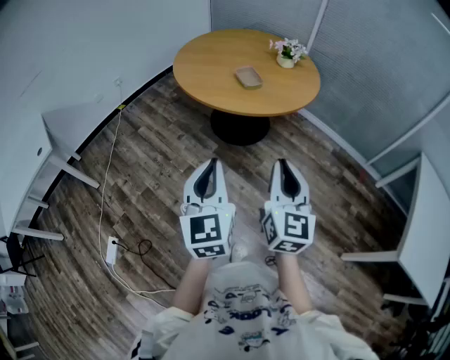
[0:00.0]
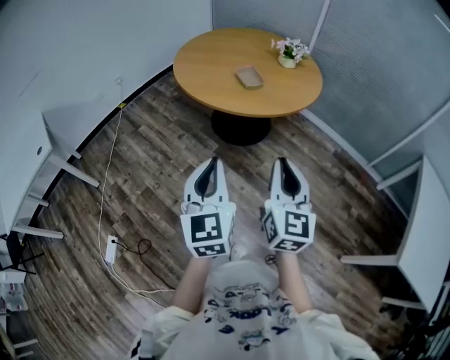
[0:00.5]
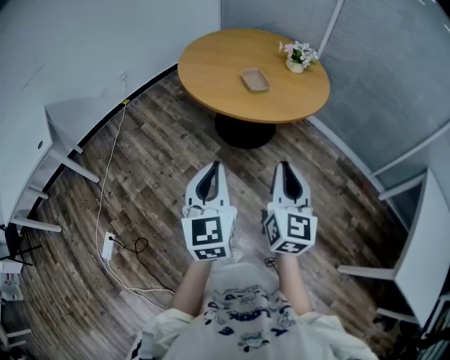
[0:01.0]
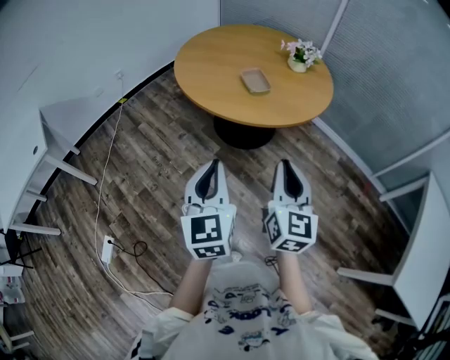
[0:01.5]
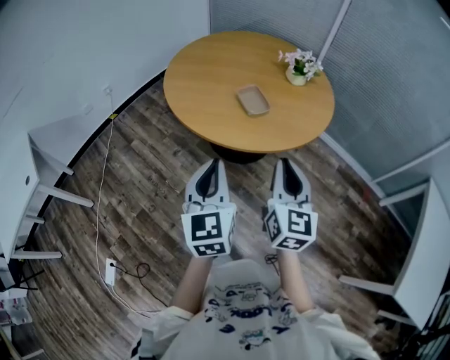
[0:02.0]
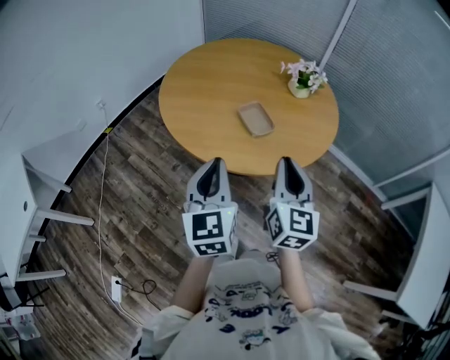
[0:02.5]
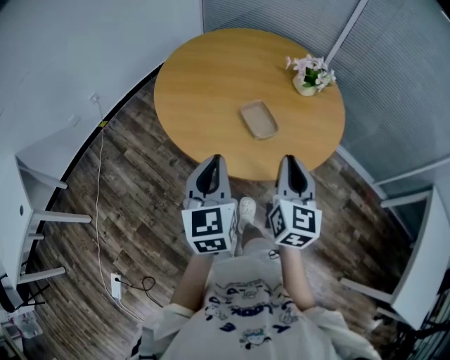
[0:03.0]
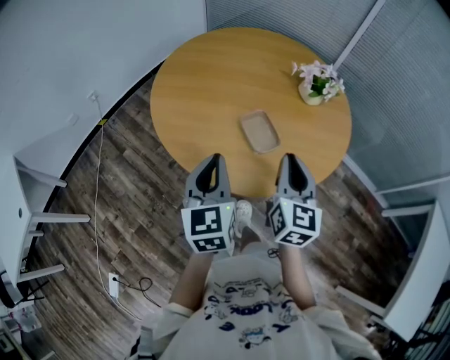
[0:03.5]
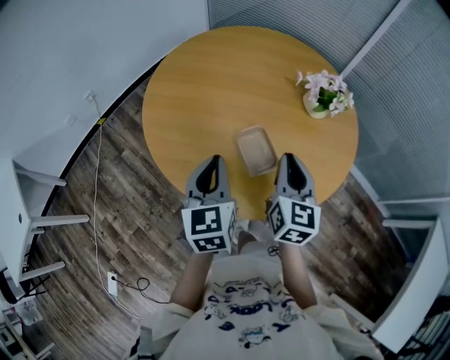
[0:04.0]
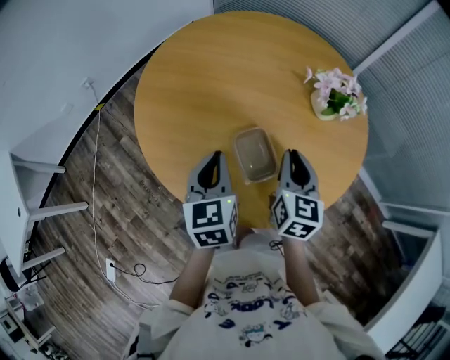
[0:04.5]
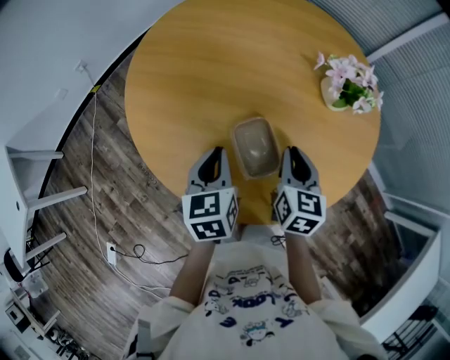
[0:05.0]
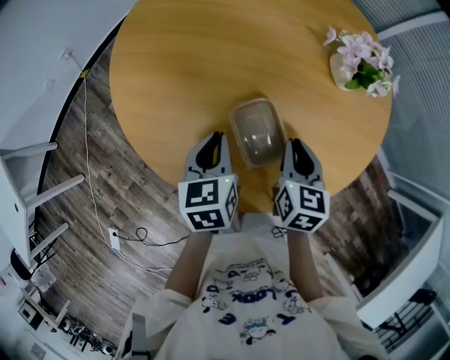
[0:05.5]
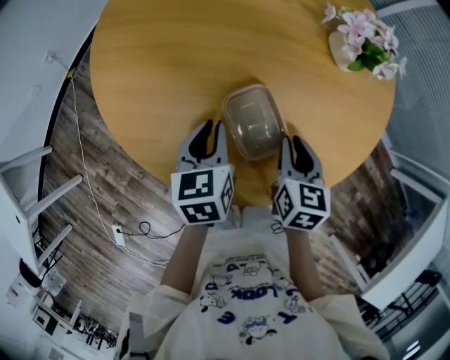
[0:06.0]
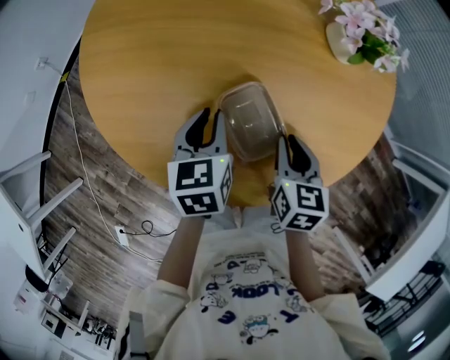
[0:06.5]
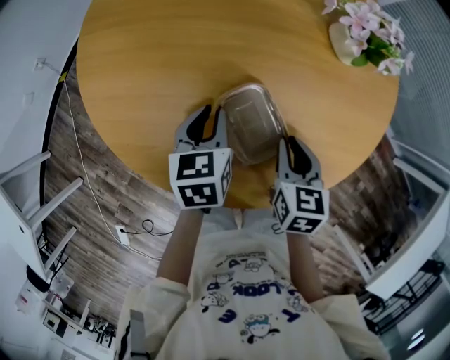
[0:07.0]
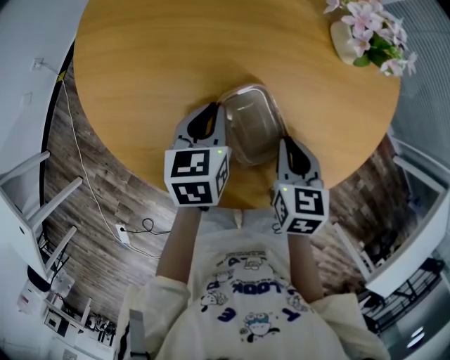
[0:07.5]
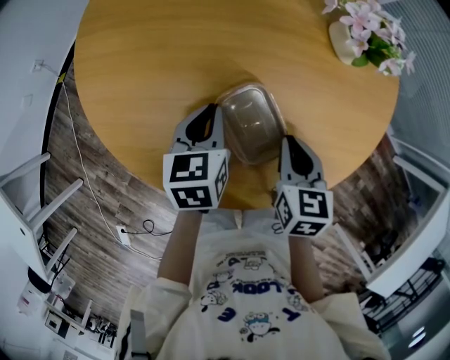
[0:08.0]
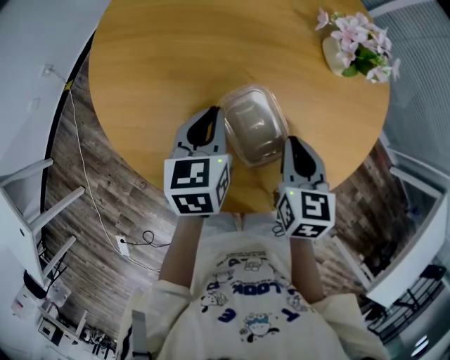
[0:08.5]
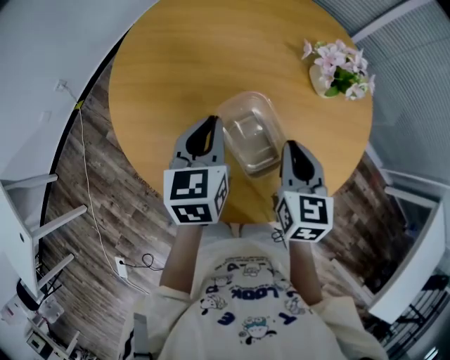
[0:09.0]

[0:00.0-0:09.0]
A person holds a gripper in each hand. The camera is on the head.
0:00.0 to 0:02.0: The two grippers go some 25 cm forward.
0:02.0 to 0:04.5: Both grippers travel together forward, about 40 cm.
0:04.5 to 0:07.0: The right gripper goes some 15 cm downward, and turns by approximately 30 degrees. The left gripper is displaced downward and forward by approximately 15 cm, and changes its angle by roughly 20 degrees.
0:07.0 to 0:09.0: The grippers both shift upward by approximately 15 cm.

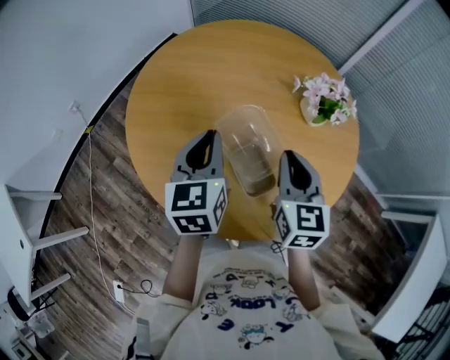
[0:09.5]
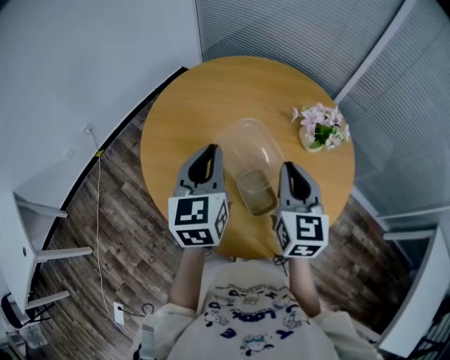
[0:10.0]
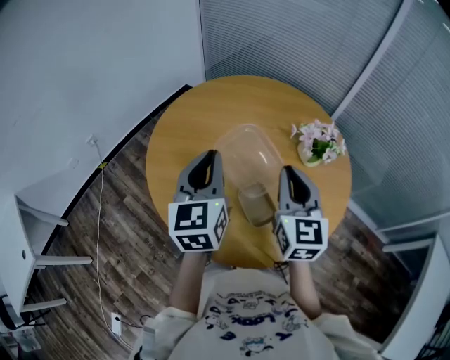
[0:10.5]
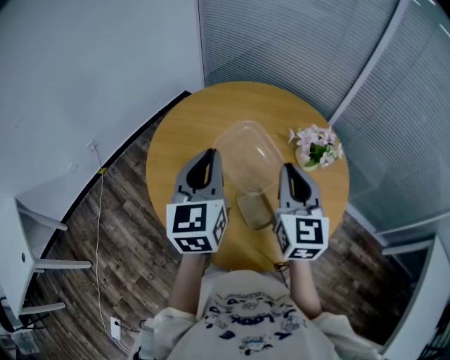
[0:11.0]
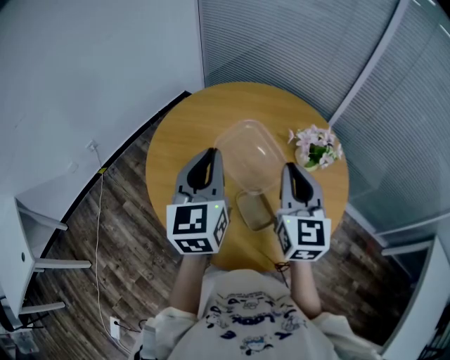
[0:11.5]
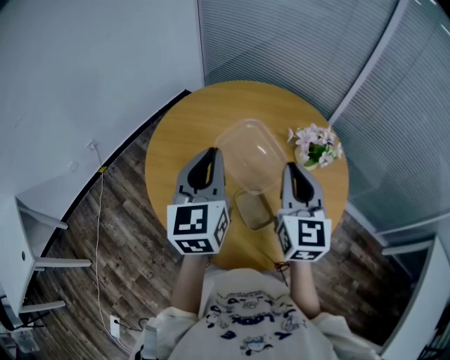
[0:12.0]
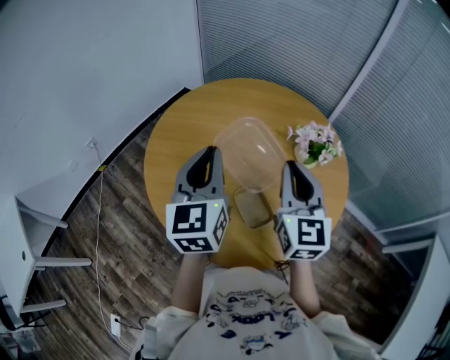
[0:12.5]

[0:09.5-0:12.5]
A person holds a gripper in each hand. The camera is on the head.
0:09.5 to 0:11.0: Both grippers move upward, some 10 cm.
0:11.0 to 0:12.5: The grippers make only small movements.

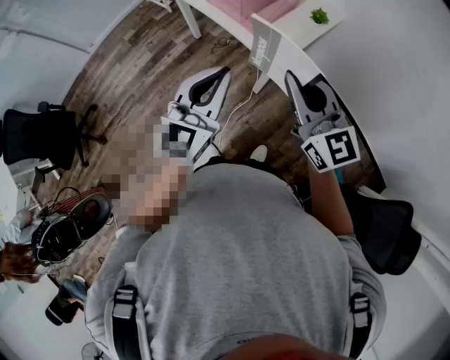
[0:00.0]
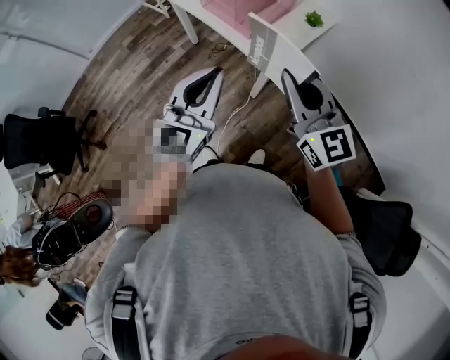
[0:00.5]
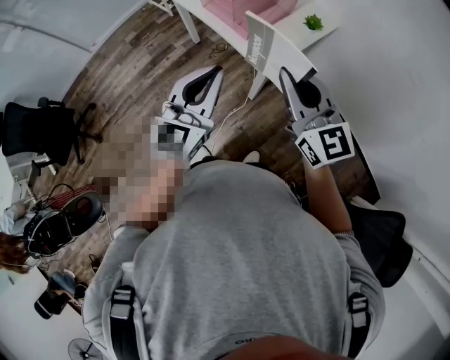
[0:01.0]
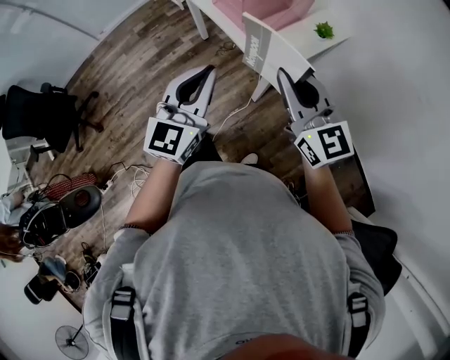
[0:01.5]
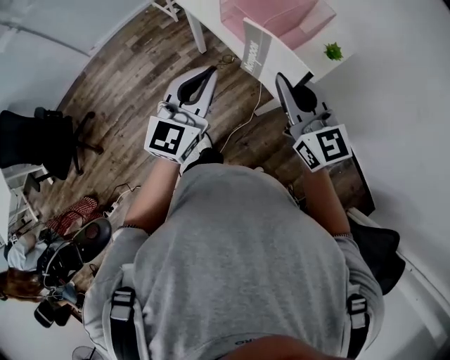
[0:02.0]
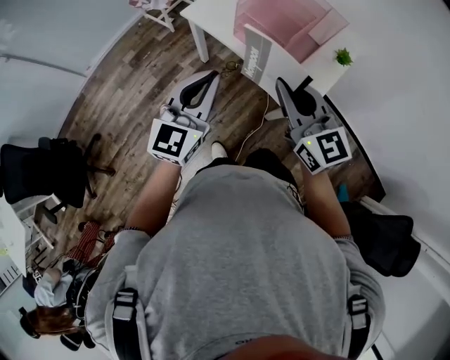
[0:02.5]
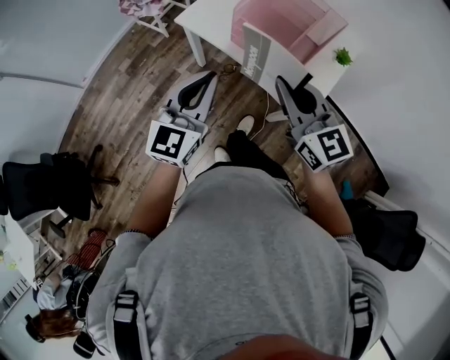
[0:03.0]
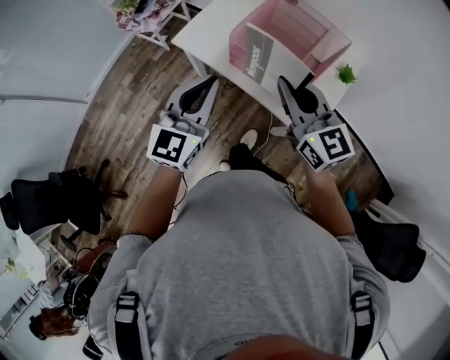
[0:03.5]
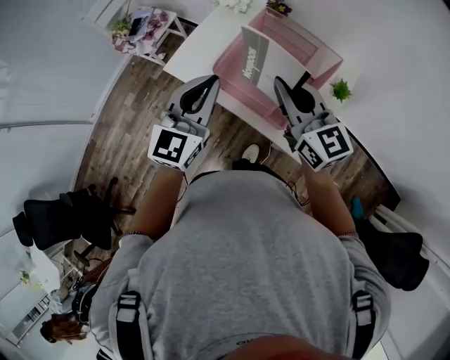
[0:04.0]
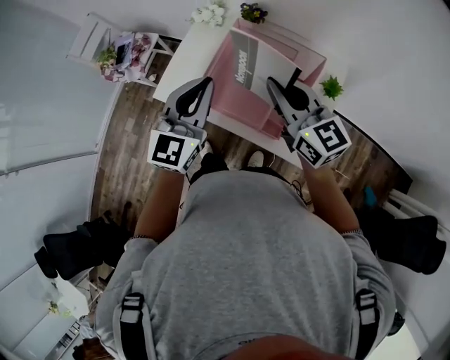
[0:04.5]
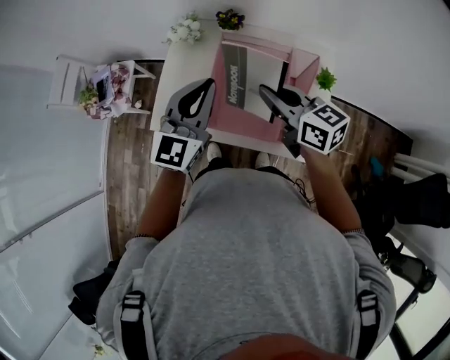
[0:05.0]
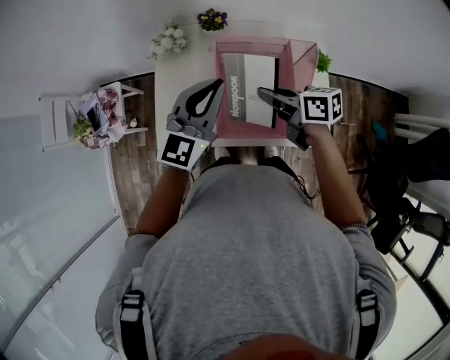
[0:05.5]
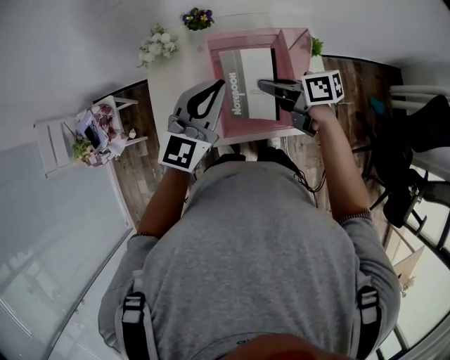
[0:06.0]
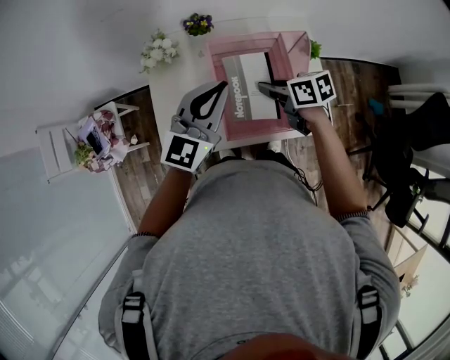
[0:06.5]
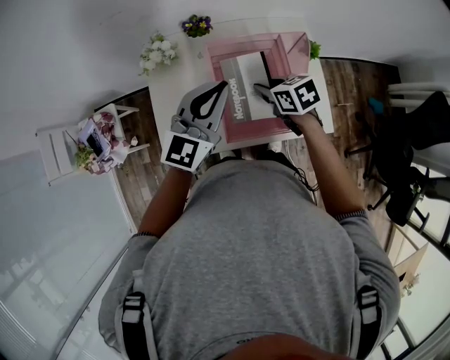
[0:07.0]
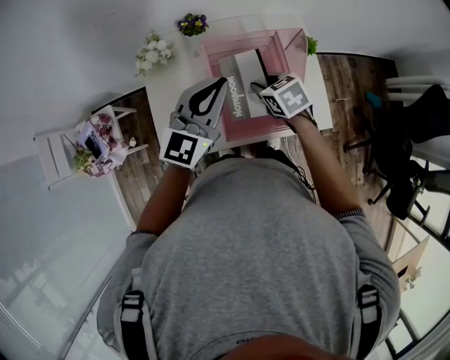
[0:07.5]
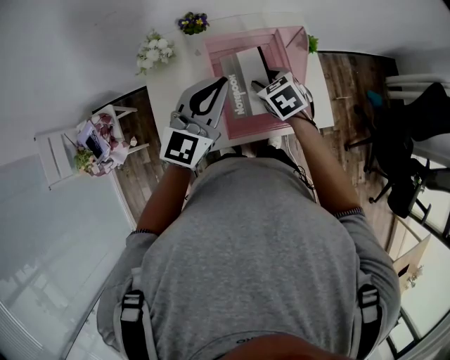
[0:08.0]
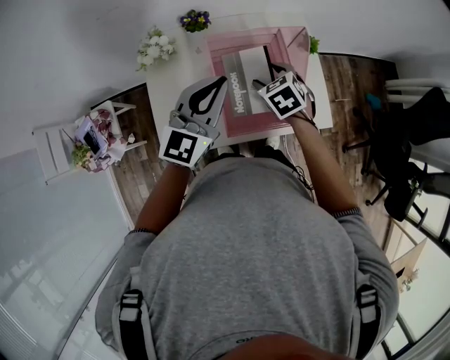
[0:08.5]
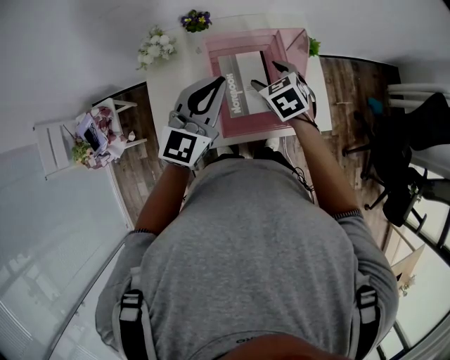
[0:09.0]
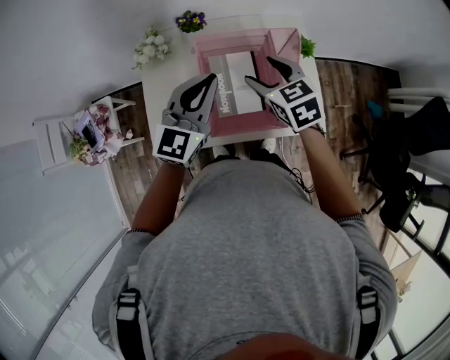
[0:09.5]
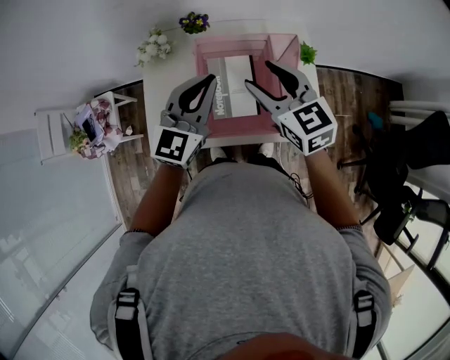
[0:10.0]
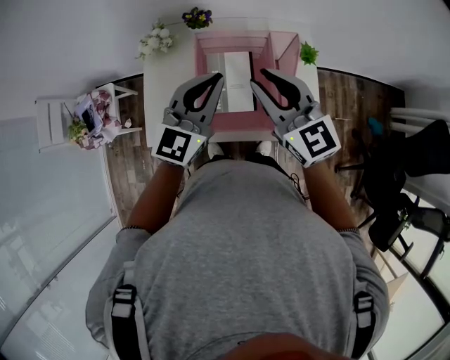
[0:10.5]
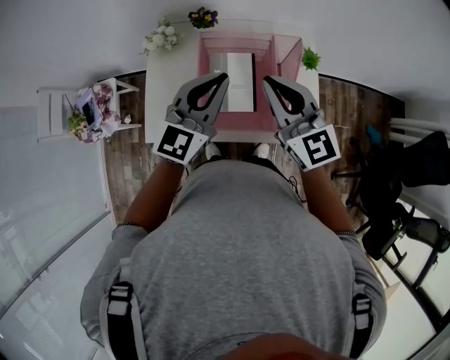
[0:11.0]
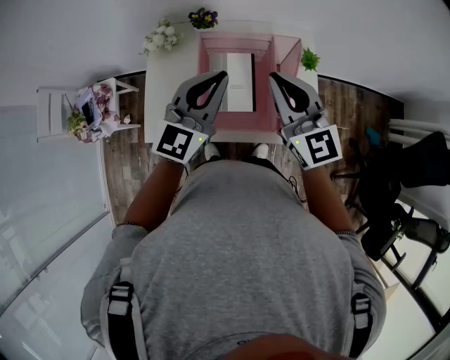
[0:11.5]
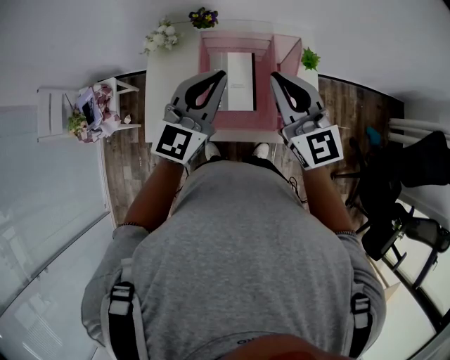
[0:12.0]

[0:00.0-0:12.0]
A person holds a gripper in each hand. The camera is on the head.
0:00.0 to 0:02.0: Both grippers travel together forward and to the left, about 15 cm.
0:02.0 to 0:04.0: Both grippers travel together forward, roughly 30 cm.
0:04.0 to 0:06.0: The left gripper changes place by some 20 cm, and changes its angle by approximately 40 degrees. The right gripper travels downward by some 15 cm, and rolls clockwise, seen from behind, by approximately 60 degrees.
0:06.0 to 0:08.0: The right gripper travels downward by approximately 5 cm, tips its fingers downward by about 30 degrees, and opens up.
0:08.0 to 0:10.0: The right gripper goes about 15 cm upward, and tilts its fingers roughly 40 degrees upward.
0:10.0 to 0:12.0: The right gripper changes place by some 5 cm, and closes. The left gripper changes place by about 5 cm.

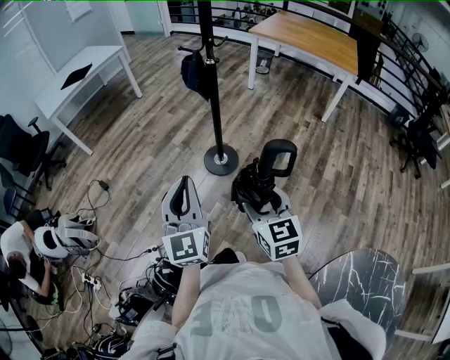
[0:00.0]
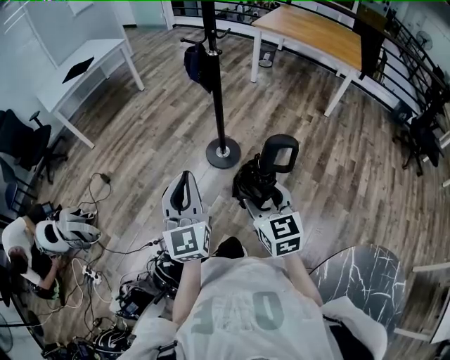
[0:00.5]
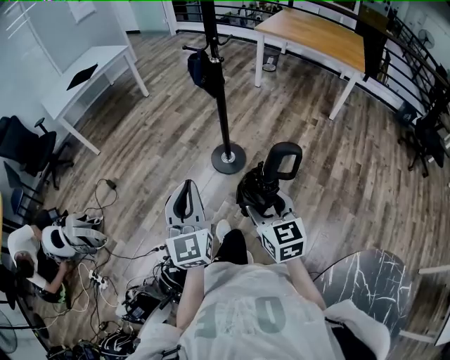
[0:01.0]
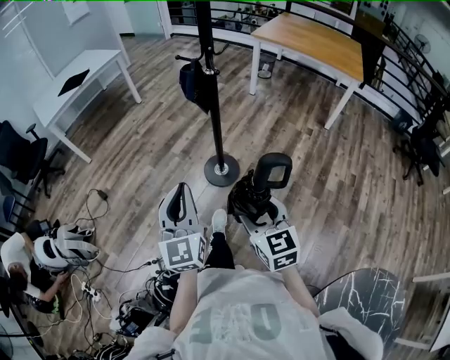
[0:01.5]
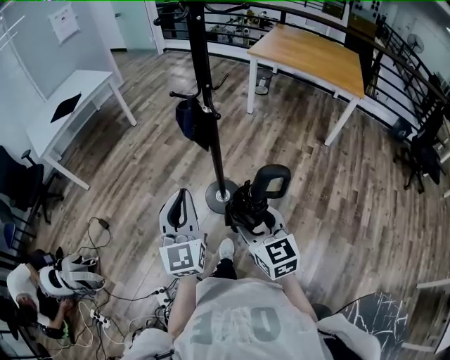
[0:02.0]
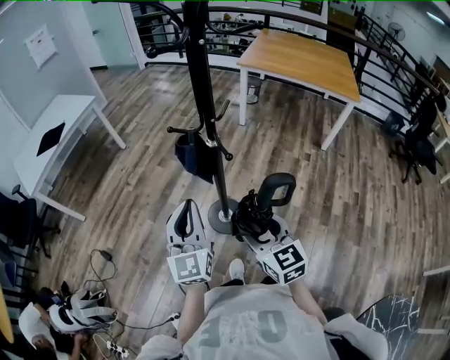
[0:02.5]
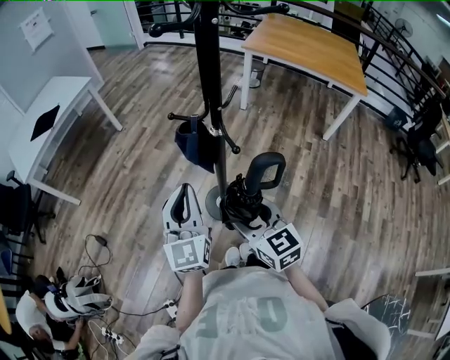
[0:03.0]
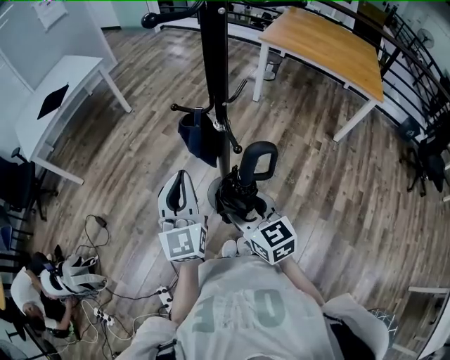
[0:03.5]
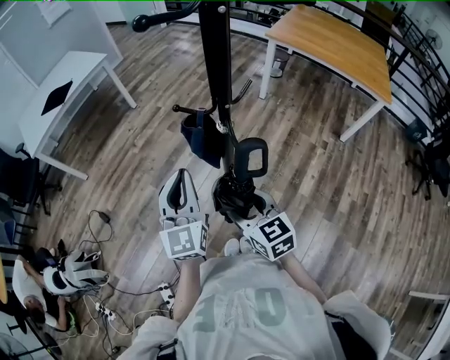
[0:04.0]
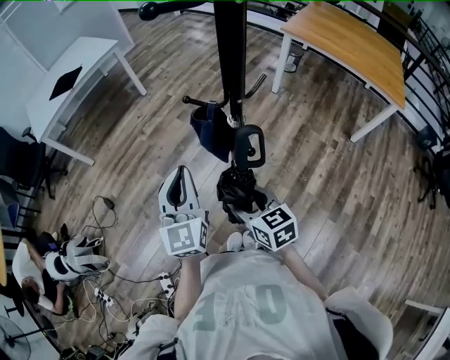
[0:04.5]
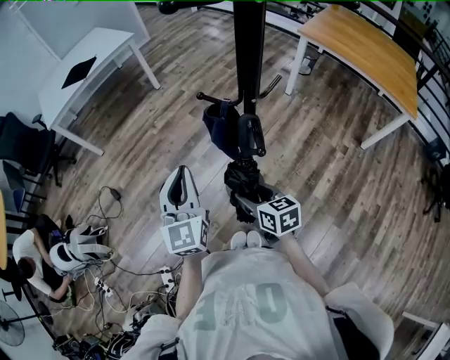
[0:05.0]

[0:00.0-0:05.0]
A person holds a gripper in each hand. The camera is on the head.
0:00.0 to 0:02.5: The two grippers go approximately 35 cm forward.
0:02.5 to 0:05.0: The right gripper shifts some 20 cm forward and downward, and changes its angle by roughly 30 degrees; the left gripper is displaced forward by about 10 cm.
